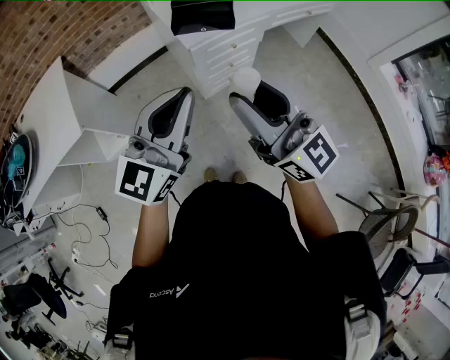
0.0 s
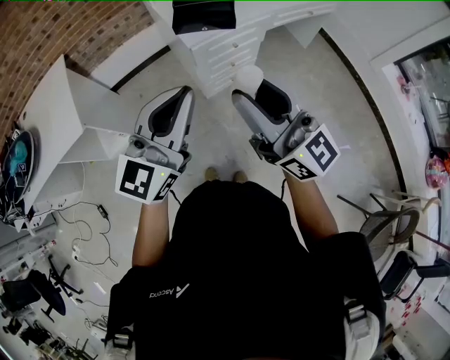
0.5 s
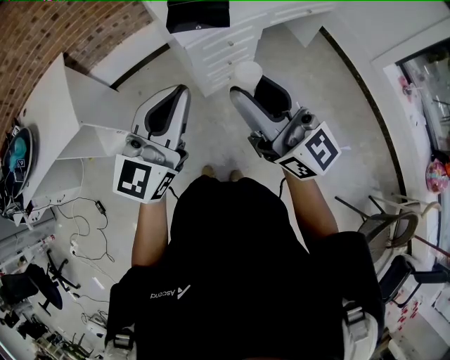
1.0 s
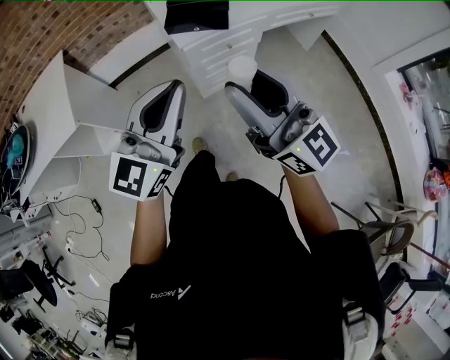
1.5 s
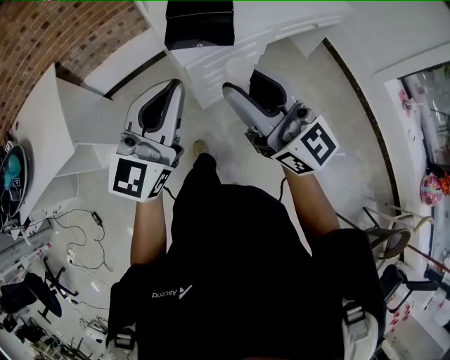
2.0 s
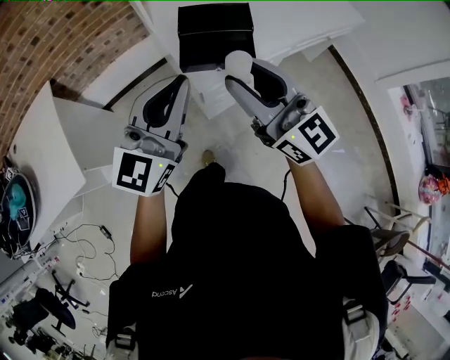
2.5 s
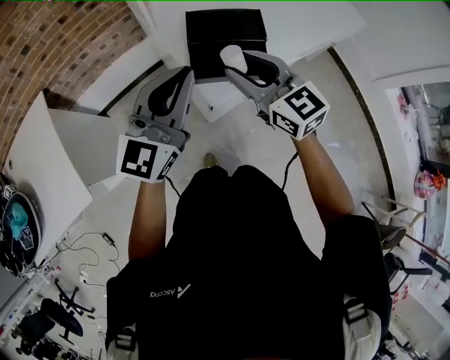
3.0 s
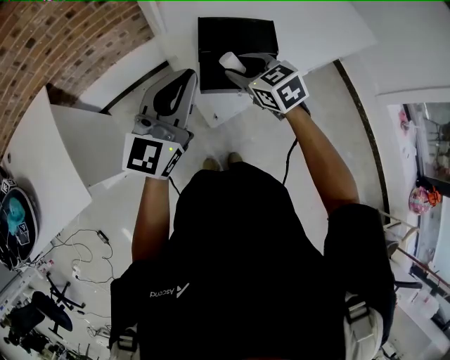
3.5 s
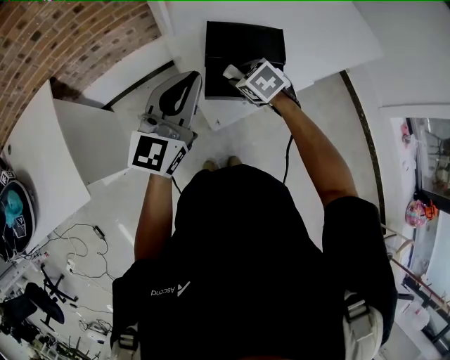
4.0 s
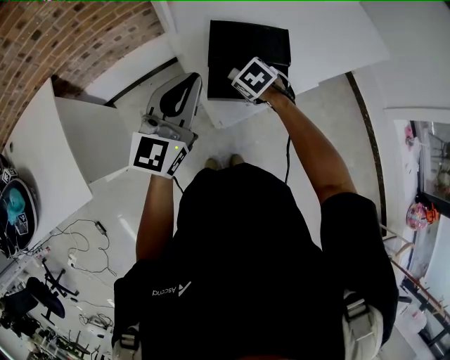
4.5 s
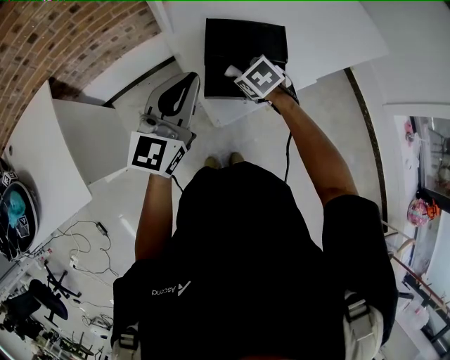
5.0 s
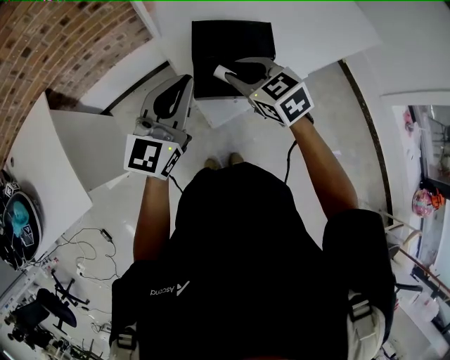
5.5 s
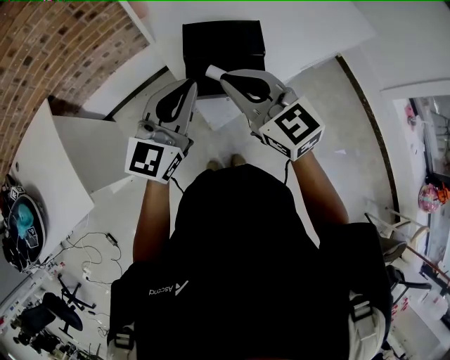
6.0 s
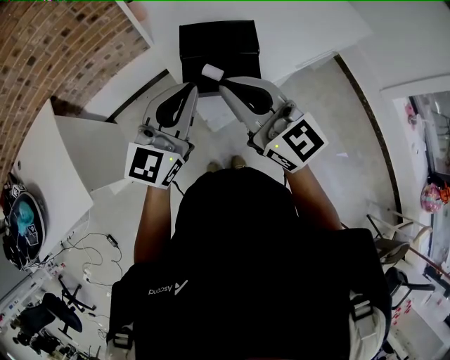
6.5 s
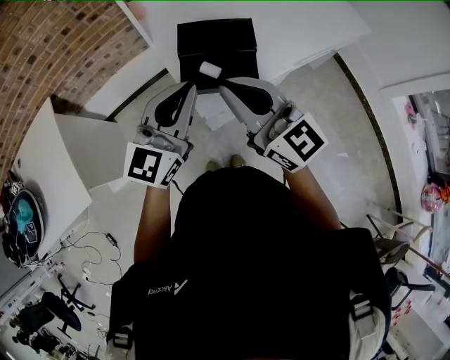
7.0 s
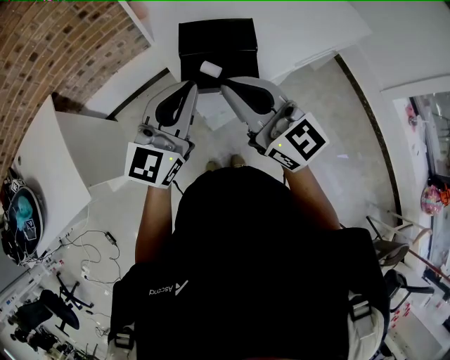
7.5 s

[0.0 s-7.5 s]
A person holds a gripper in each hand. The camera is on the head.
0.0 to 2.0 s: The two grippers go about 10 cm forward.
2.0 to 4.0 s: The right gripper heads forward and downward, covering approximately 50 cm, and angles its fingers downward, by approximately 80 degrees. Meanwhile the left gripper shifts approximately 30 cm forward.
4.0 to 5.5 s: The right gripper moves upward, roughly 10 cm, and swivels some 20 degrees.
5.5 to 7.5 s: The right gripper moves upward and backward, approximately 20 cm, tilts its fingers approximately 40 degrees upward, and closes up. The left gripper shifts some 10 cm backward and to the right.

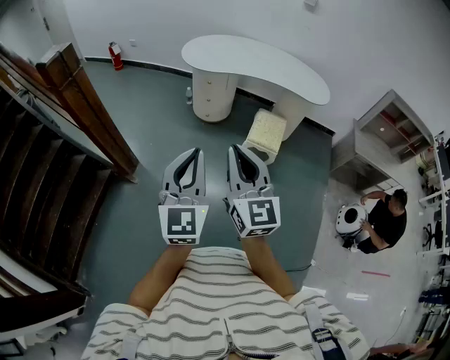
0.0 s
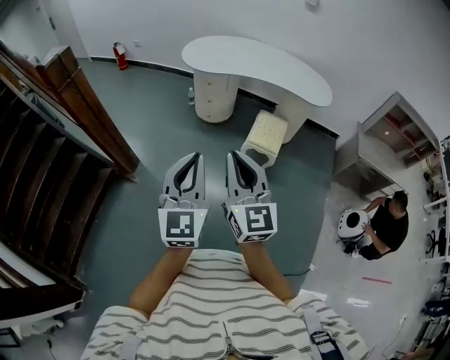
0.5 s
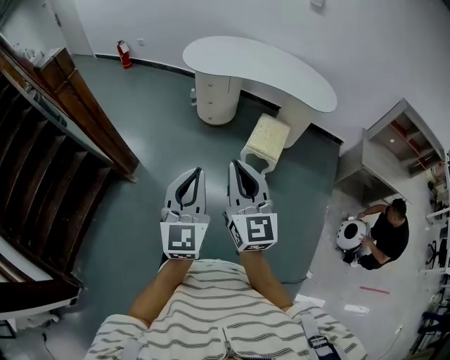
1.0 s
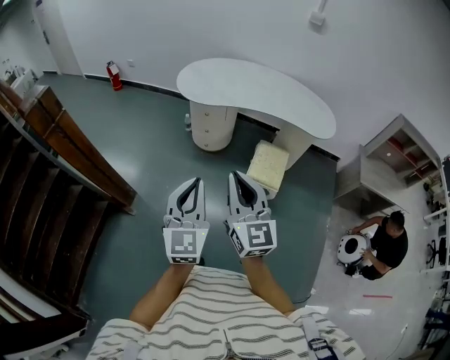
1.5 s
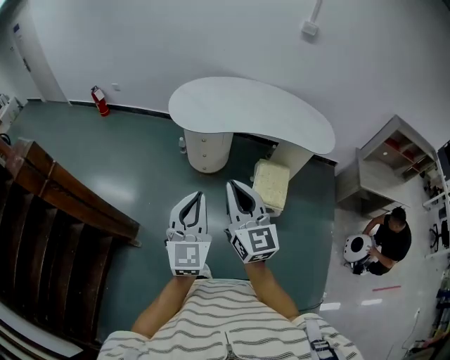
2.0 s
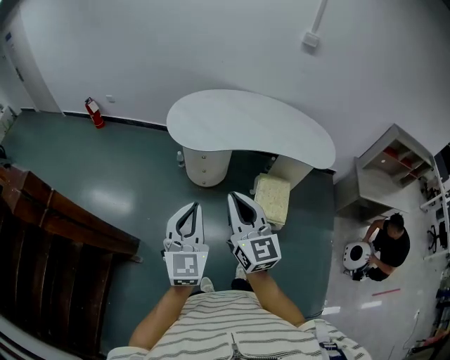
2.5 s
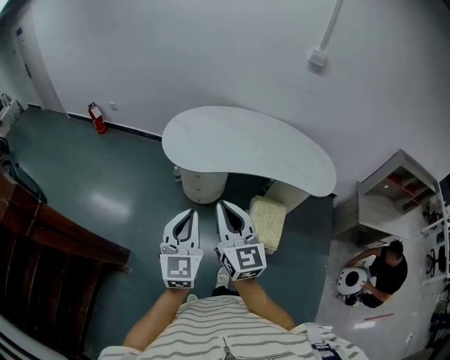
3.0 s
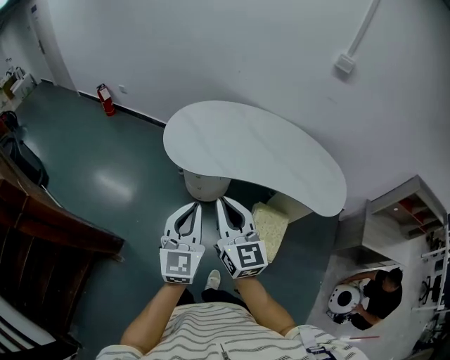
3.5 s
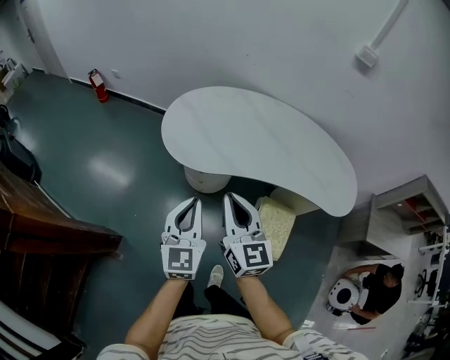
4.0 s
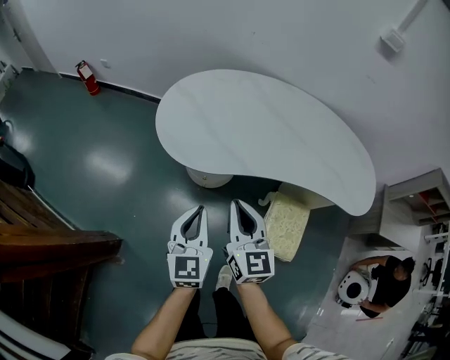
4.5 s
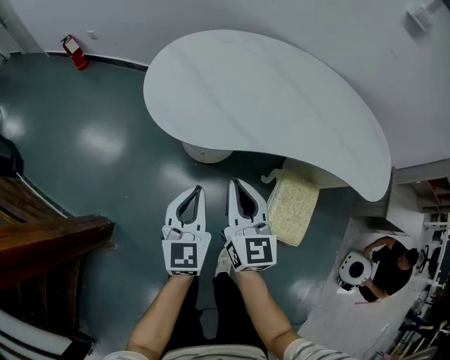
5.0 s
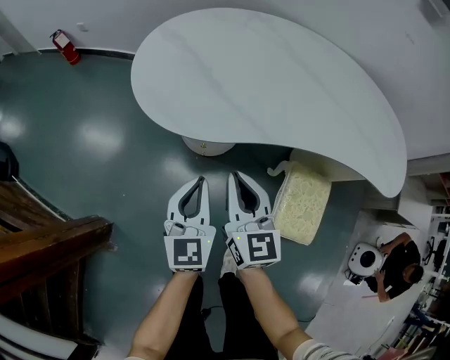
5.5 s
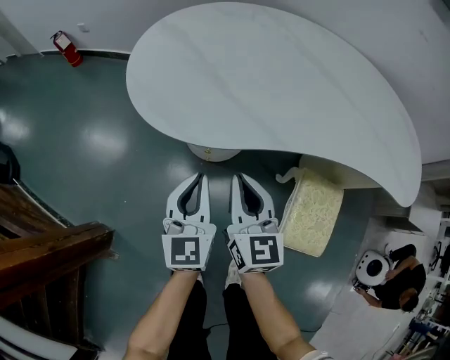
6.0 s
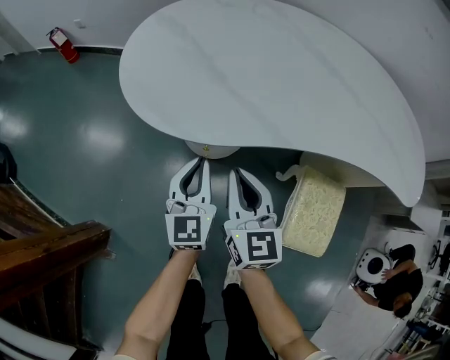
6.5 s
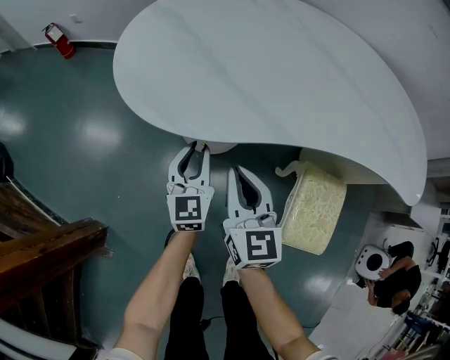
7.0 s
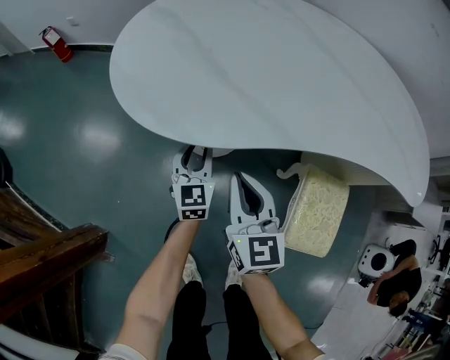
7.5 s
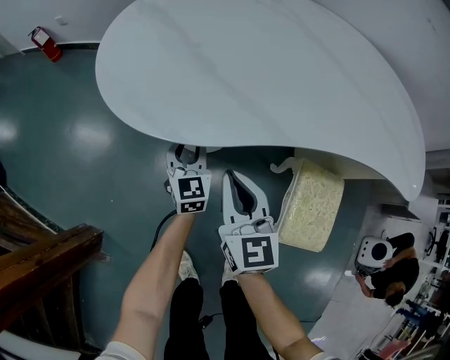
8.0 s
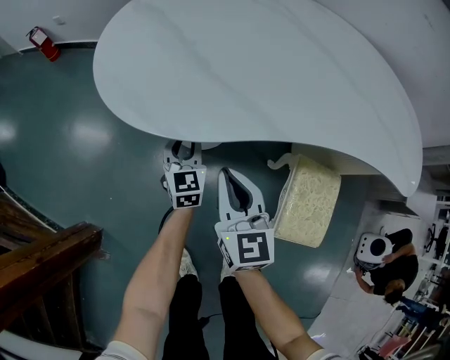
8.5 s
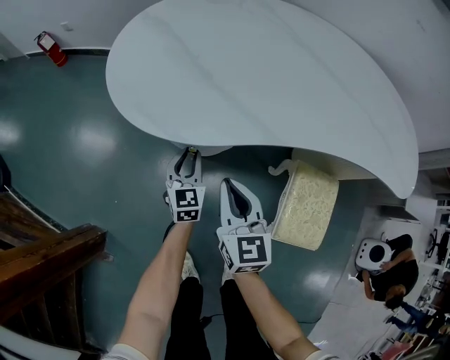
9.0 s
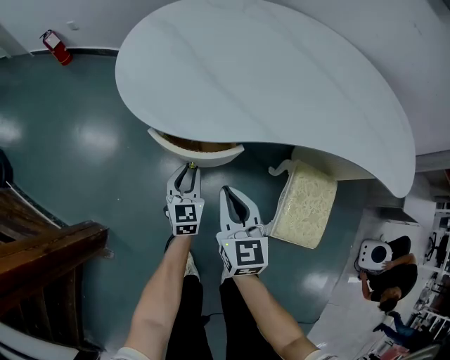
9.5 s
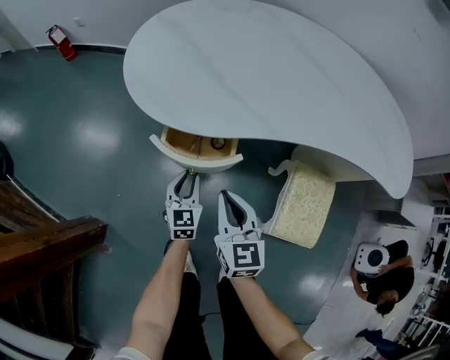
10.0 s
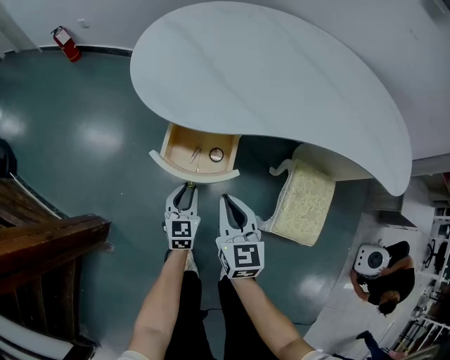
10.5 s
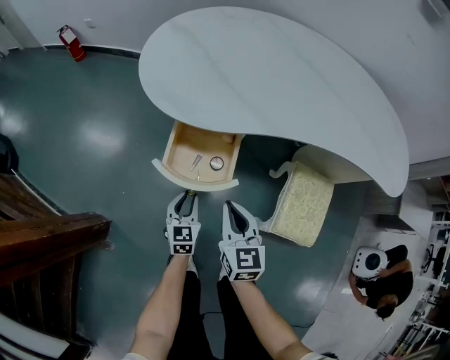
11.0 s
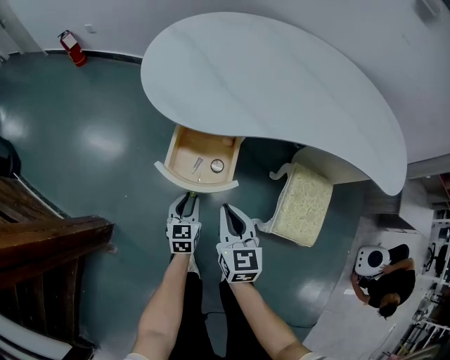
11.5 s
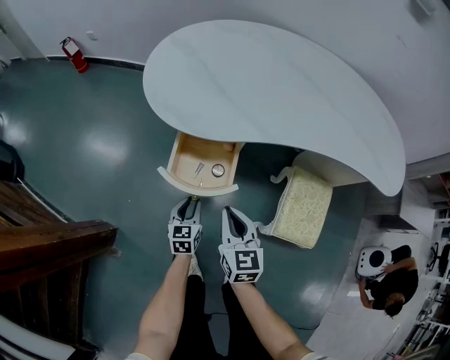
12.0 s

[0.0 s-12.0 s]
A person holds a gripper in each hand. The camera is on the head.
0.0 to 2.0 s: Both grippers travel together forward, roughly 30 cm.
2.0 to 4.0 s: The grippers both shift forward by roughly 30 cm.
4.0 to 6.0 s: The right gripper shifts approximately 35 cm downward. The left gripper is displaced downward and forward by about 35 cm.
6.0 to 8.0 s: The right gripper shifts some 5 cm downward. Meanwhile the left gripper moves downward and forward, approximately 20 cm, and opens up.
8.0 to 10.0 s: The right gripper shifts roughly 10 cm backward, while the left gripper shifts roughly 15 cm backward.
10.0 to 12.0 s: The left gripper travels backward by about 10 cm. The right gripper heads backward, covering roughly 5 cm.

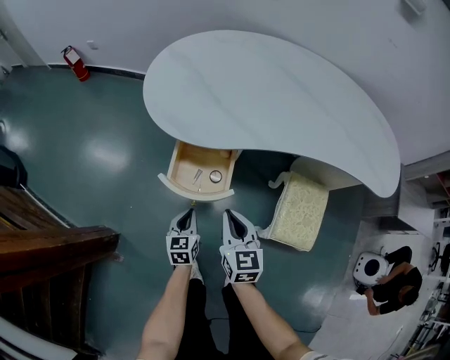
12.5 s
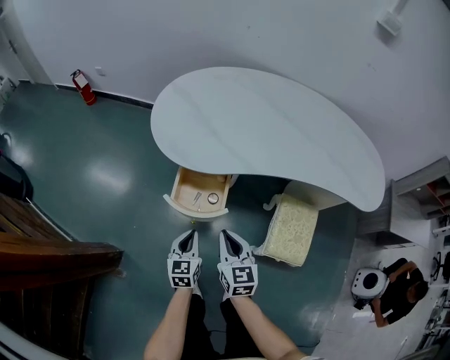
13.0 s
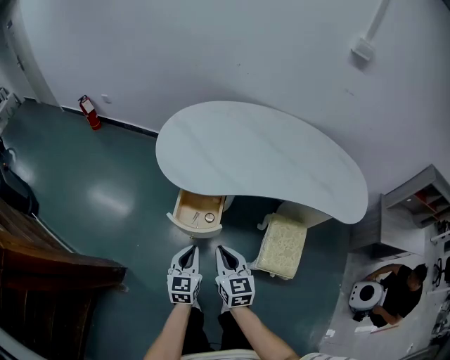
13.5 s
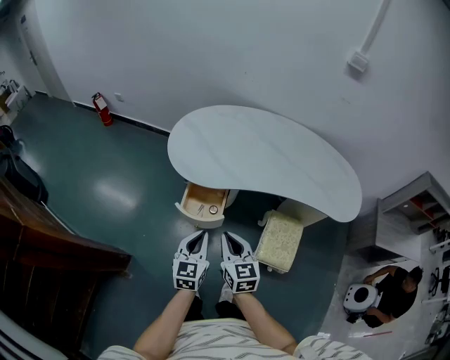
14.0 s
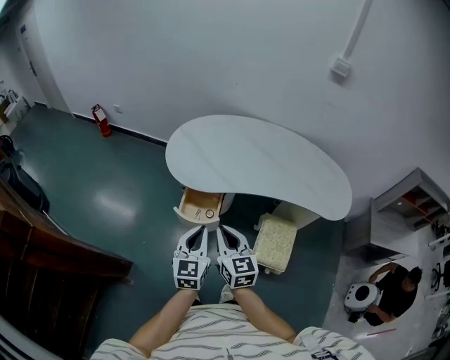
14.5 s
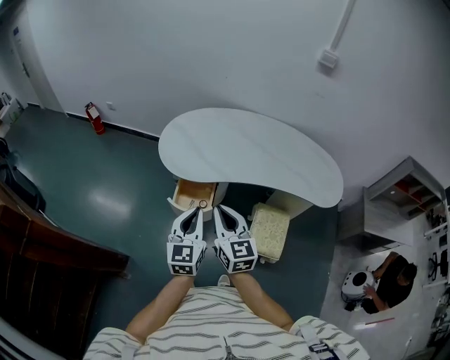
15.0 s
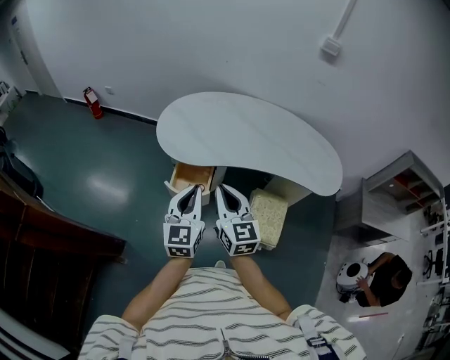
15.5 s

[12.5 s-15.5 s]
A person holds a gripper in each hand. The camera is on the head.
12.5 to 14.0 s: The right gripper shifts roughly 20 cm upward, while the left gripper is displaced upward by some 35 cm.
14.0 to 15.5 s: The grippers both shift upward by roughly 15 cm.

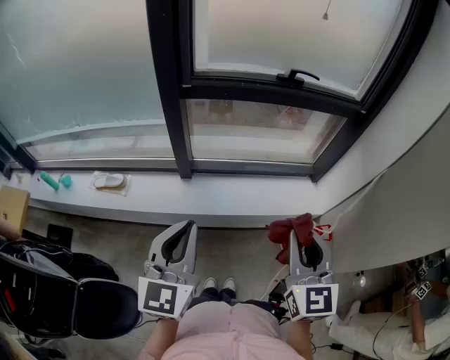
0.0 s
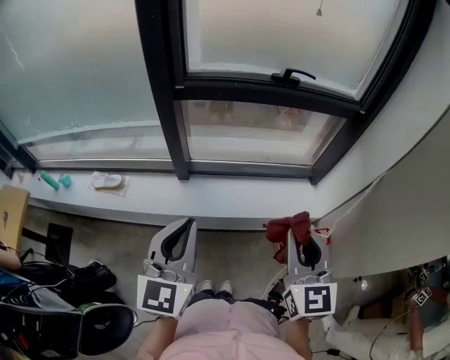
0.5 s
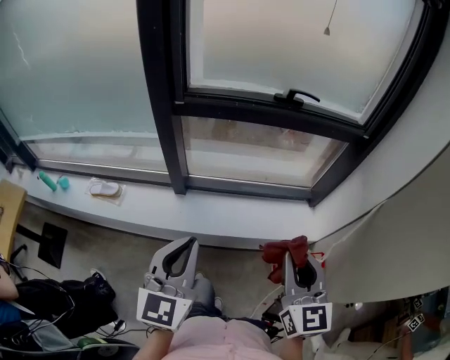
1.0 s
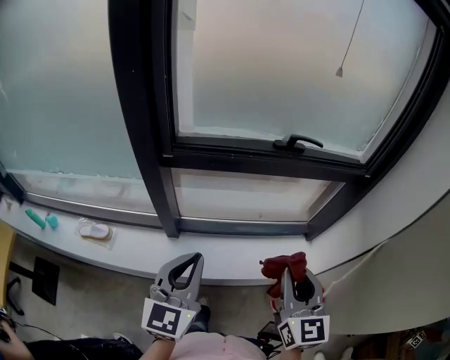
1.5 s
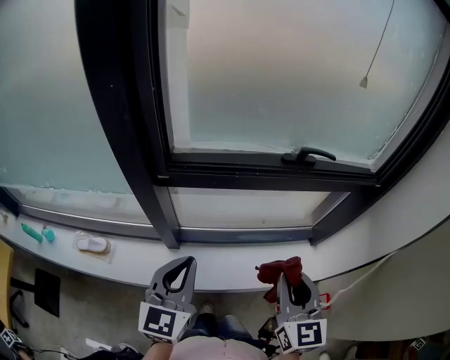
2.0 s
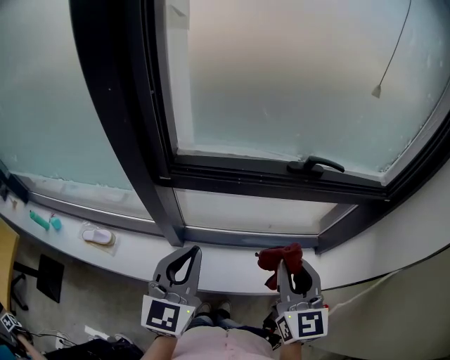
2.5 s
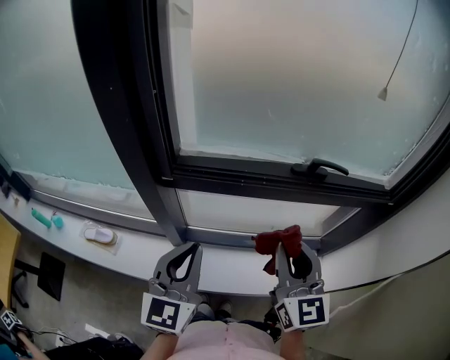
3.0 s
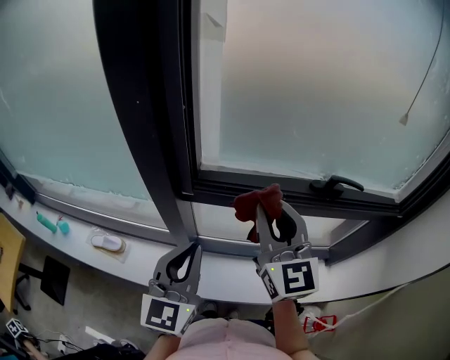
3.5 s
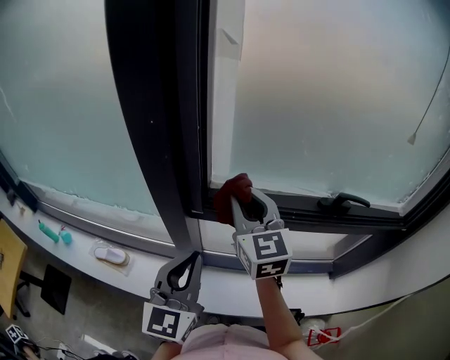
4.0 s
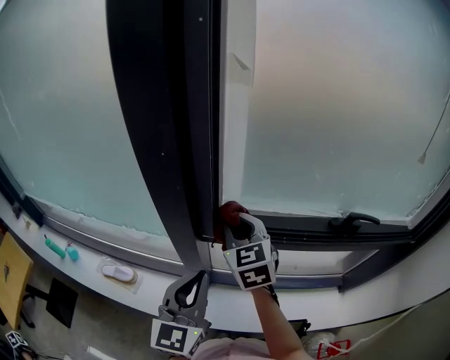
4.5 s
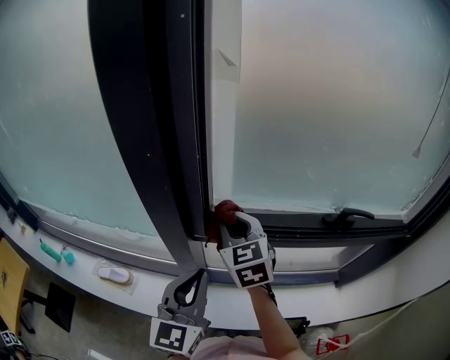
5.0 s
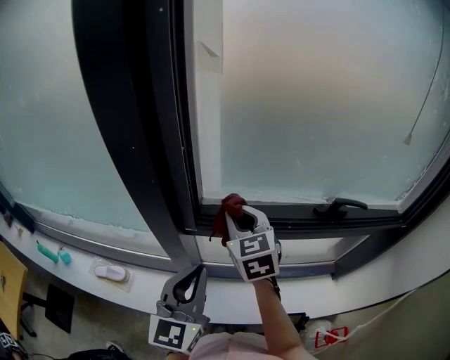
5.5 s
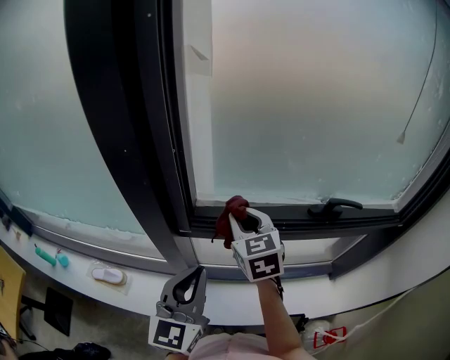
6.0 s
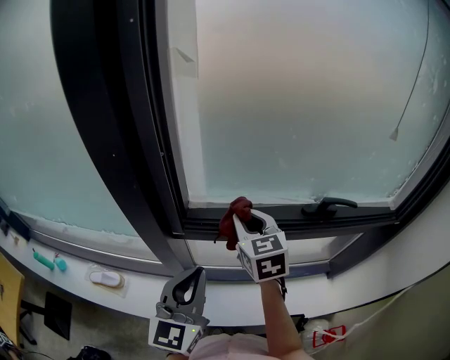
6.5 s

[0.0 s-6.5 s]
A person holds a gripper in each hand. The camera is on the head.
0.0 to 2.0 s: Both grippers move forward, approximately 30 cm.
2.0 to 4.5 s: The left gripper travels forward and to the left by approximately 15 cm. The right gripper goes about 40 cm forward and to the left, and swivels some 30 degrees.
4.5 to 6.5 s: The left gripper travels to the right by some 5 cm, while the right gripper shifts some 10 cm to the right.
